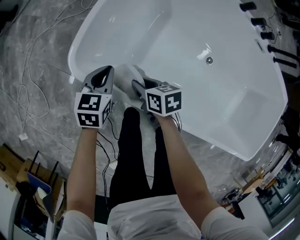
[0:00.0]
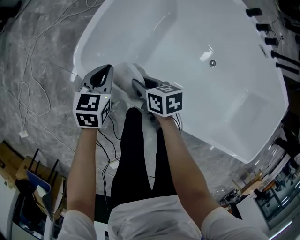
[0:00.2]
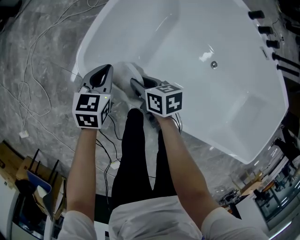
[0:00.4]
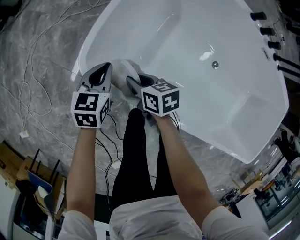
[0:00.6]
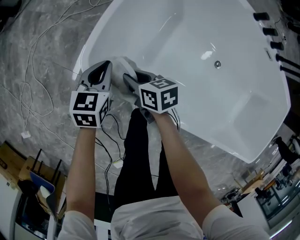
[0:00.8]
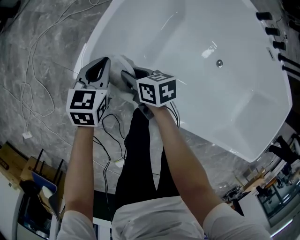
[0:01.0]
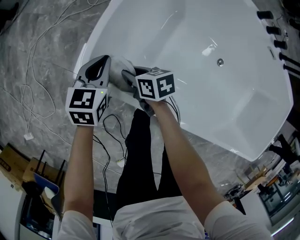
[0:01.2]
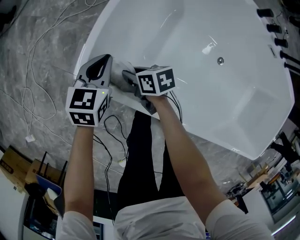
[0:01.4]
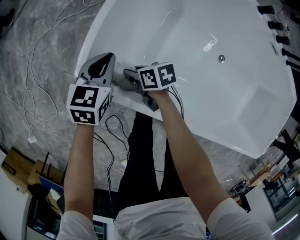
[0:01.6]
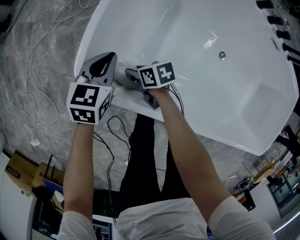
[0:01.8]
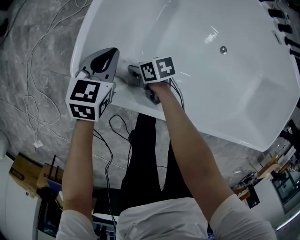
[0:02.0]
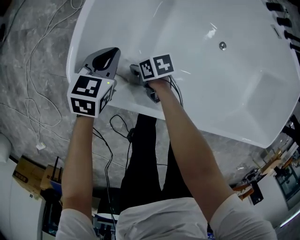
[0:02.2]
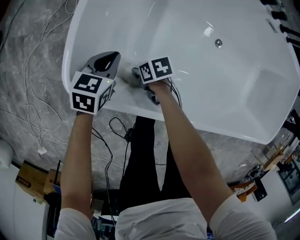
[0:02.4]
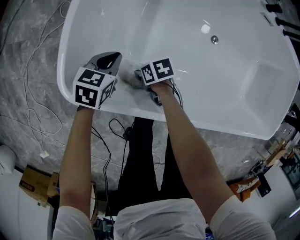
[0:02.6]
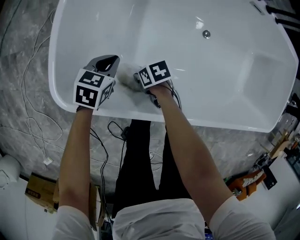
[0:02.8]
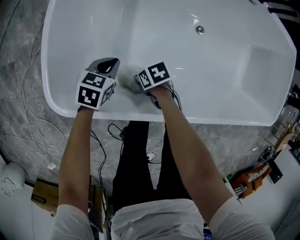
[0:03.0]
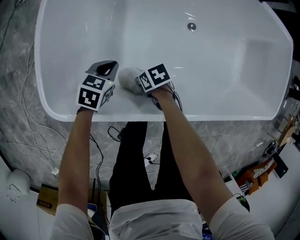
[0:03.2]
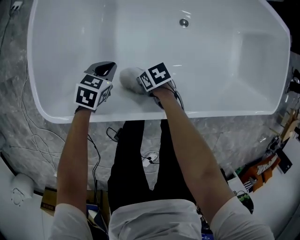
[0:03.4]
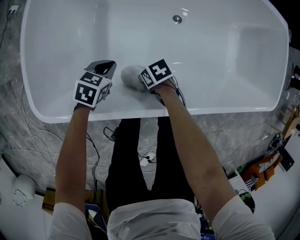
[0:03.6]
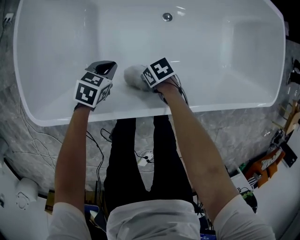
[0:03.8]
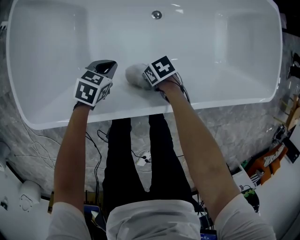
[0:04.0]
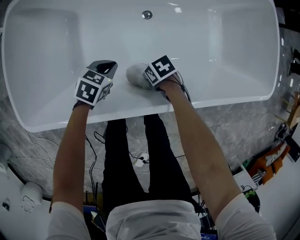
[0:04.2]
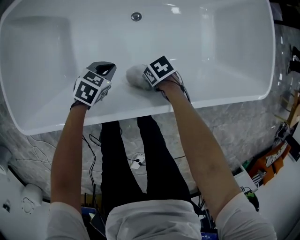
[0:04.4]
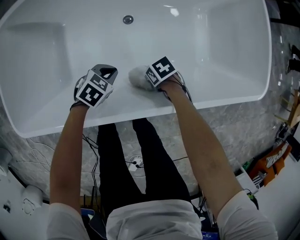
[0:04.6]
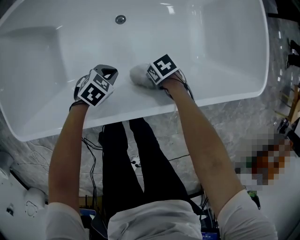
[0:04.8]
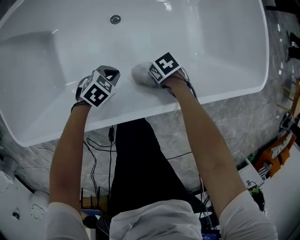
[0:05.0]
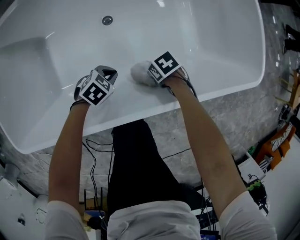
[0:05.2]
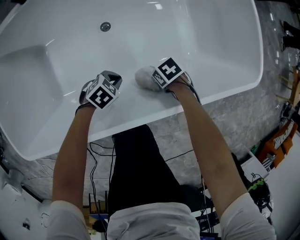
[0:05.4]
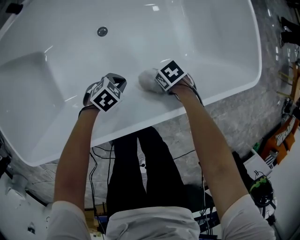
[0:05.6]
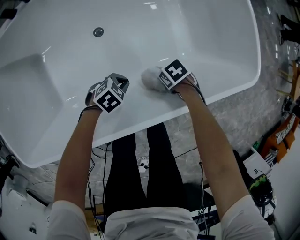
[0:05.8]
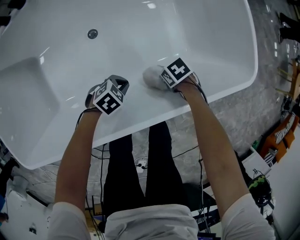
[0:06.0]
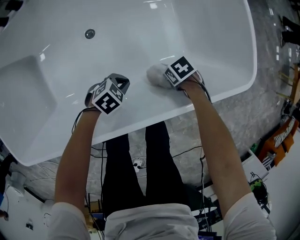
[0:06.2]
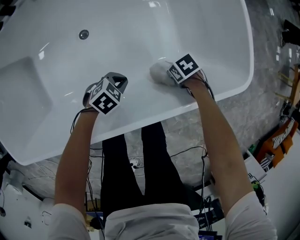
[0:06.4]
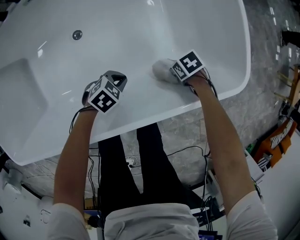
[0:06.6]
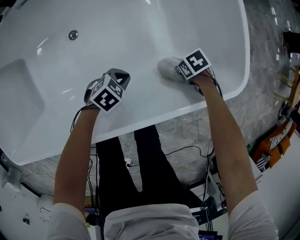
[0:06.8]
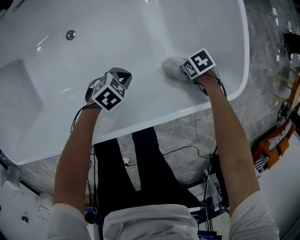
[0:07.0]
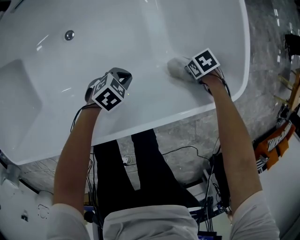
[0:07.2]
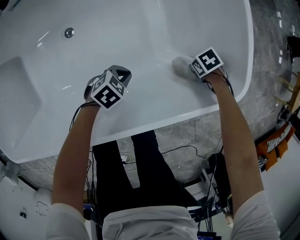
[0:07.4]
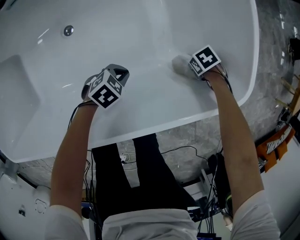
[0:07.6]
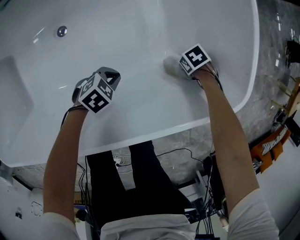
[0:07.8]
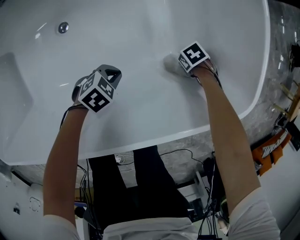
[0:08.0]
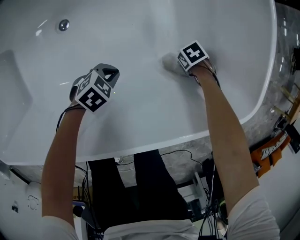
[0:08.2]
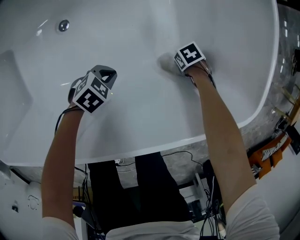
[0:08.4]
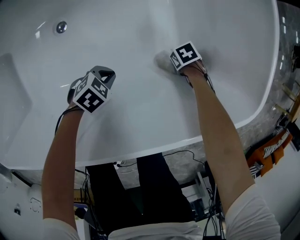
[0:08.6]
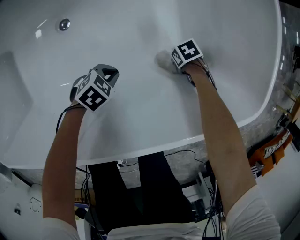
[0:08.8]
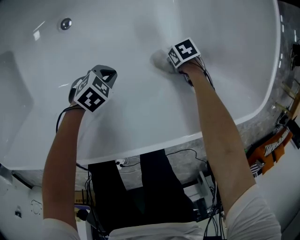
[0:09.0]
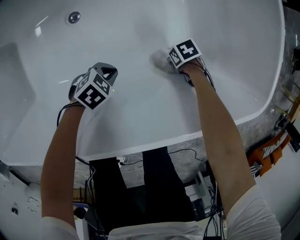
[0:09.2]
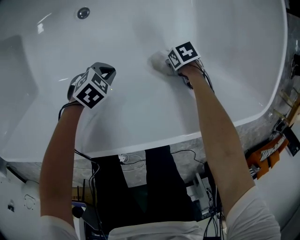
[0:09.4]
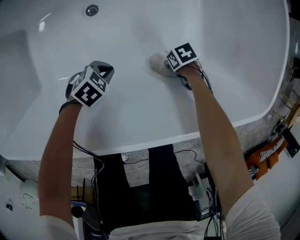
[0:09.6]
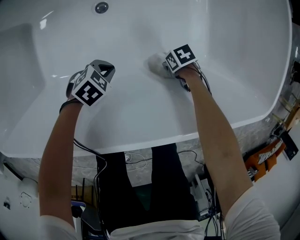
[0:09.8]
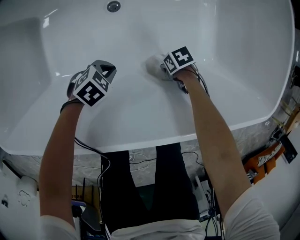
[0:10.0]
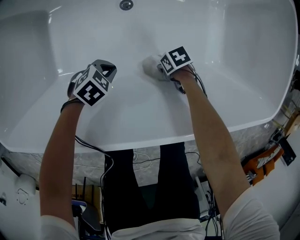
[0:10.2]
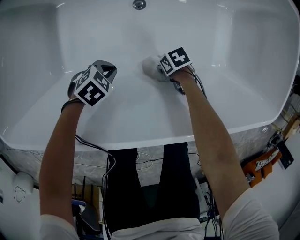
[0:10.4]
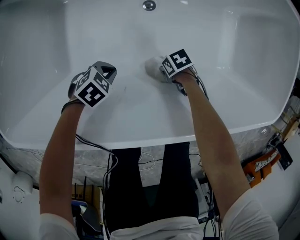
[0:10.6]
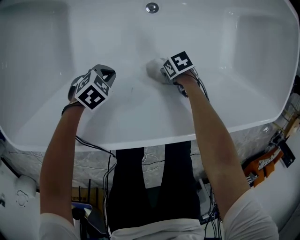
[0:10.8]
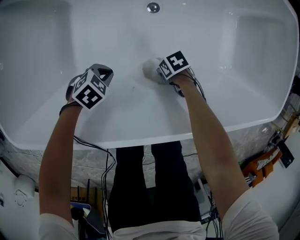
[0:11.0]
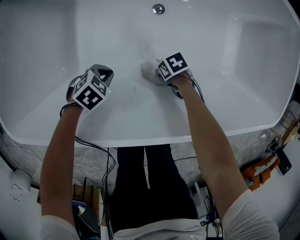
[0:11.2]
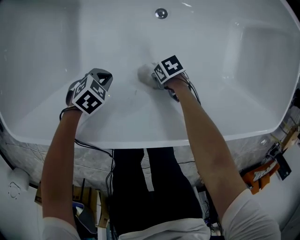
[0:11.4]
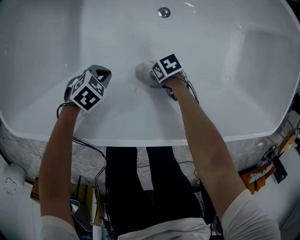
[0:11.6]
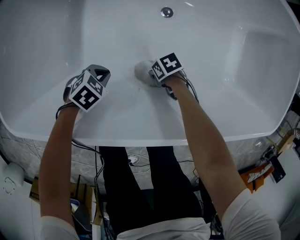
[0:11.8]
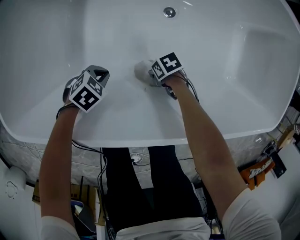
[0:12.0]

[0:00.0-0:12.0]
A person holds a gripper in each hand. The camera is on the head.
0.0 to 1.6 s: The left gripper changes place by approximately 10 cm.
1.6 to 3.0 s: The left gripper changes place by about 20 cm, and changes its angle by some 30 degrees.
3.0 to 4.4 s: The left gripper changes place by some 35 cm, and swivels roughly 30 degrees.
4.4 to 6.0 s: The left gripper ends up approximately 25 cm from where it was, and changes its angle by roughly 30 degrees.
6.0 to 7.6 s: The left gripper ends up some 15 cm from where it was.
7.6 to 9.0 s: The left gripper ends up approximately 10 cm from where it was.
9.0 to 10.4 s: The left gripper moves roughly 30 cm.
10.4 to 12.0 s: The left gripper moves approximately 15 cm.

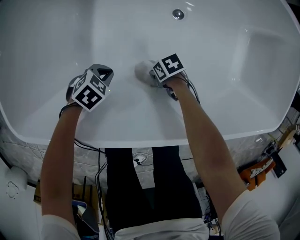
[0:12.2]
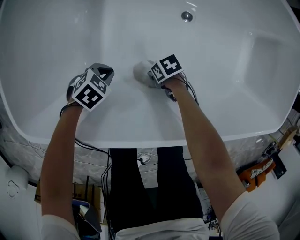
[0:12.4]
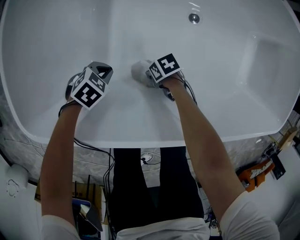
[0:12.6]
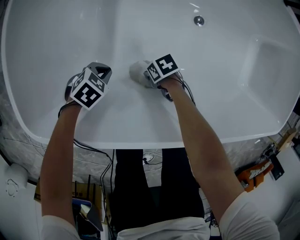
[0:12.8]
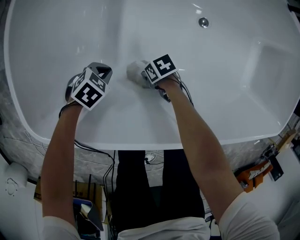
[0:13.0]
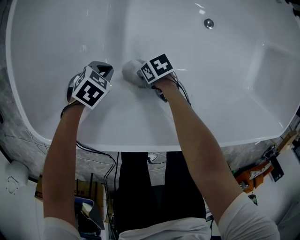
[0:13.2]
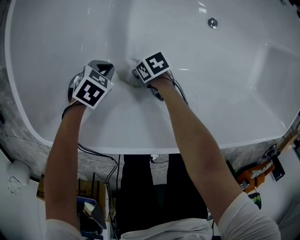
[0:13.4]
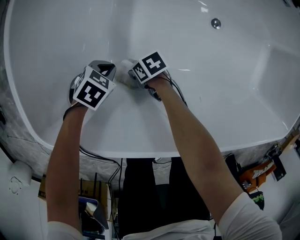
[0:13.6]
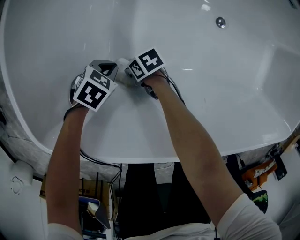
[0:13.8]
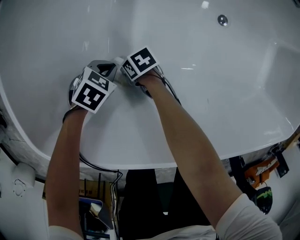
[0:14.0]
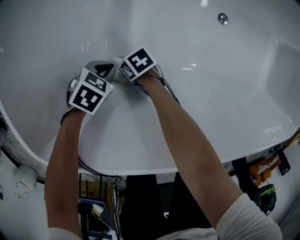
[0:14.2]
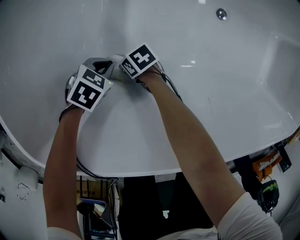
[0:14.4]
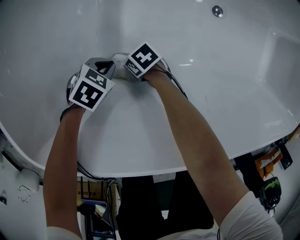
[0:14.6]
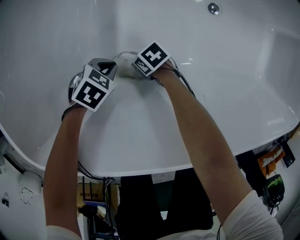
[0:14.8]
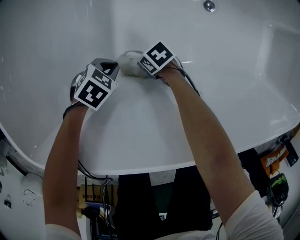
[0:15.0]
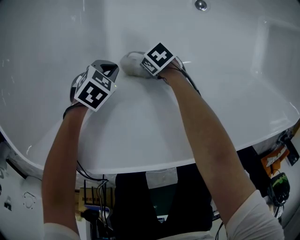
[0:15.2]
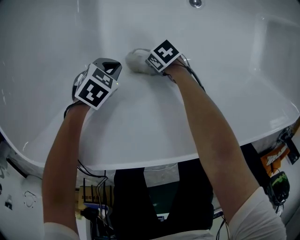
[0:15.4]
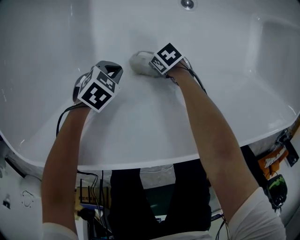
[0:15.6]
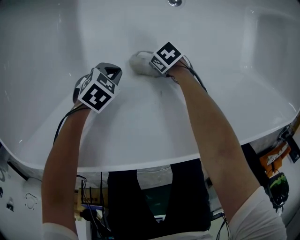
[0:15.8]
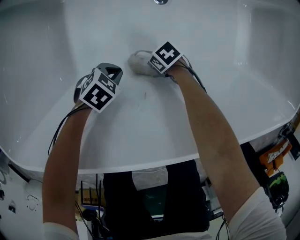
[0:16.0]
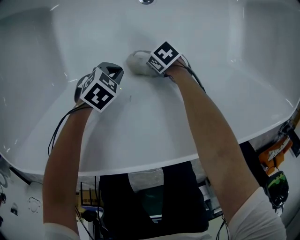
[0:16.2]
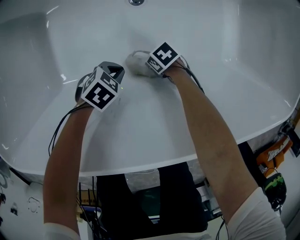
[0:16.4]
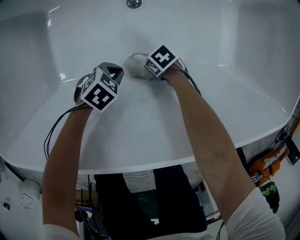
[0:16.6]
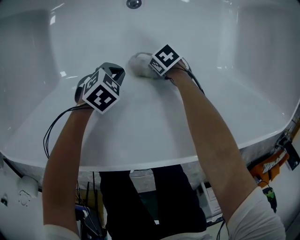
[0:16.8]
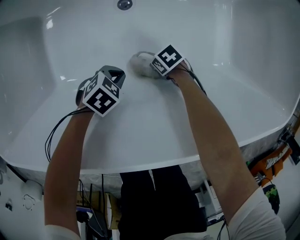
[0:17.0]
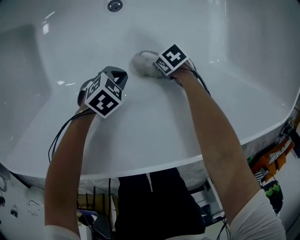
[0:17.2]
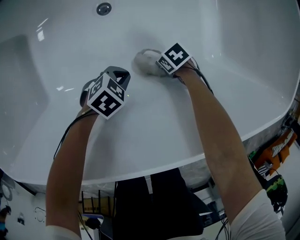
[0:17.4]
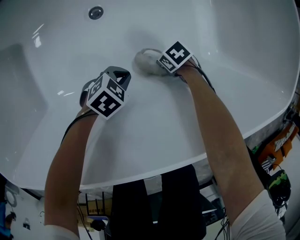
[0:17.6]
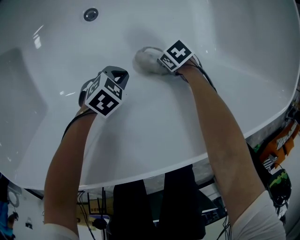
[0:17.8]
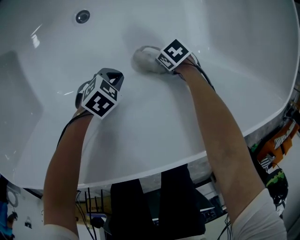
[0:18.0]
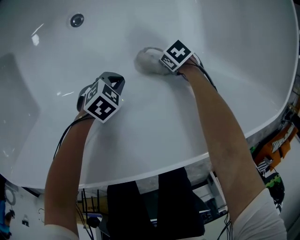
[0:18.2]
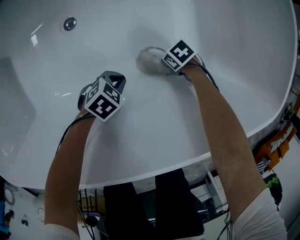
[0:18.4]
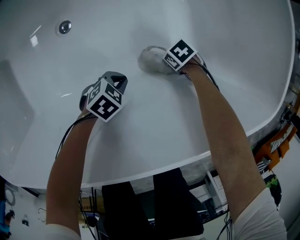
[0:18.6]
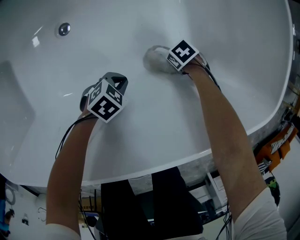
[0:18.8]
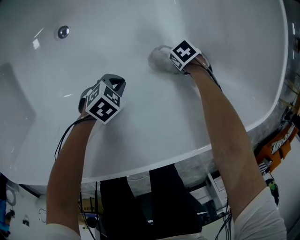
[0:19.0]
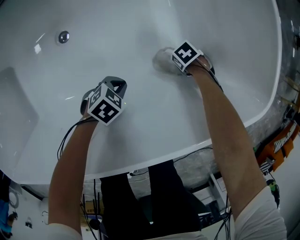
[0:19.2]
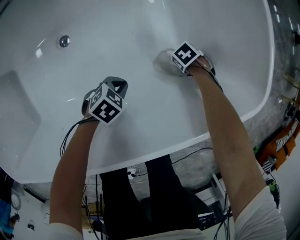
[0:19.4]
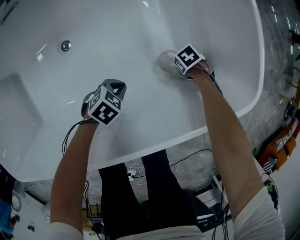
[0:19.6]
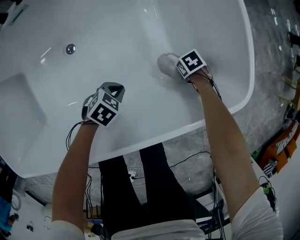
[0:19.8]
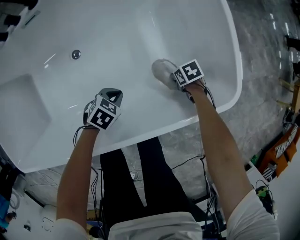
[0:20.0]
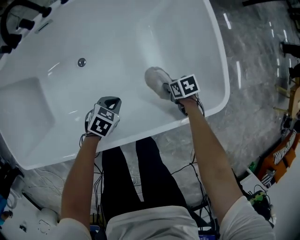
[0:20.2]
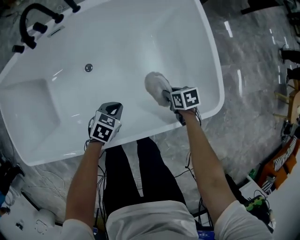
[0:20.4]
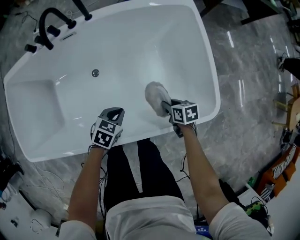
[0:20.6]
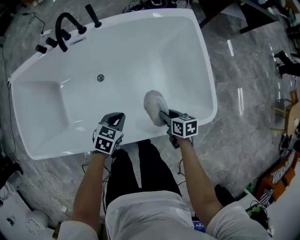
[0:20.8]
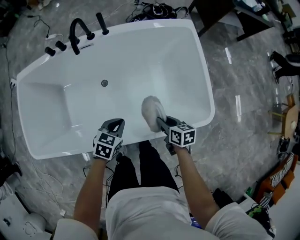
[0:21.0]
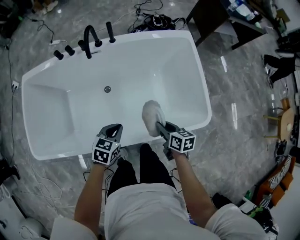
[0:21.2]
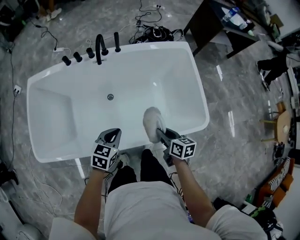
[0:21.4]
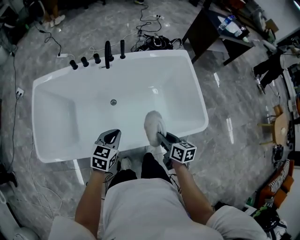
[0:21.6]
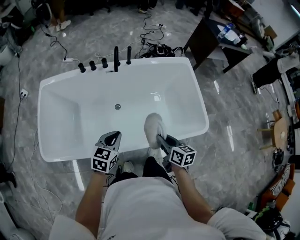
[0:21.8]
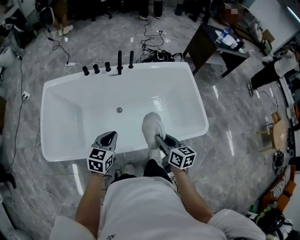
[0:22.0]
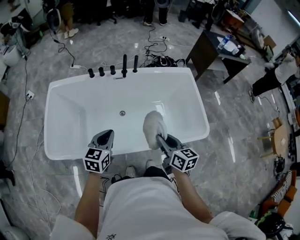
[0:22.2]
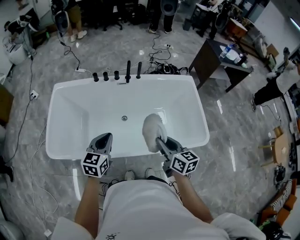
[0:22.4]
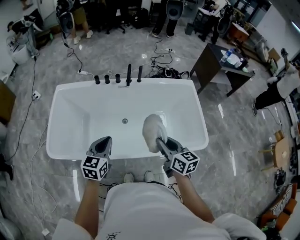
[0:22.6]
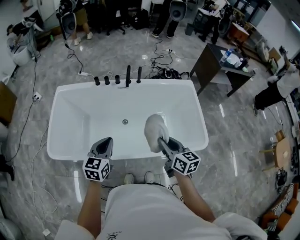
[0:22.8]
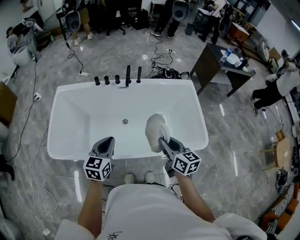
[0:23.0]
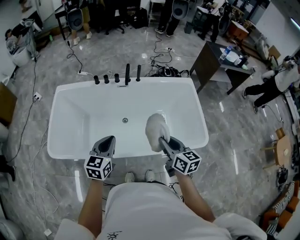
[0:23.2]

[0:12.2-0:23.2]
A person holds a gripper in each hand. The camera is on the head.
12.2 to 13.8 s: The left gripper shifts by about 20 cm.
13.8 to 15.4 s: The left gripper moves approximately 10 cm.
15.4 to 17.0 s: The left gripper shifts by some 35 cm.
17.0 to 18.4 s: The left gripper shifts by roughly 20 cm.
18.4 to 20.0 s: The left gripper is displaced upward by about 15 cm.
20.0 to 21.6 s: The left gripper is displaced upward by roughly 40 cm, and swivels roughly 40 degrees.
21.6 to 23.2 s: The left gripper shifts some 15 cm upward, and rotates approximately 20 degrees.

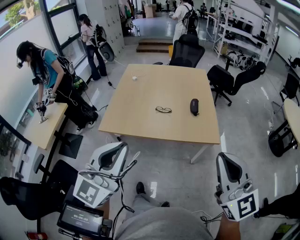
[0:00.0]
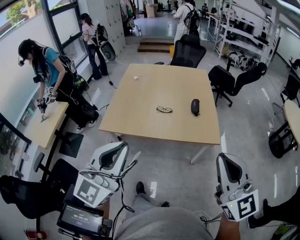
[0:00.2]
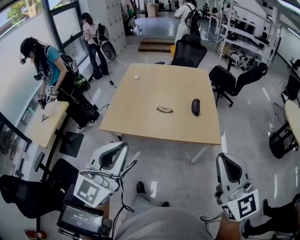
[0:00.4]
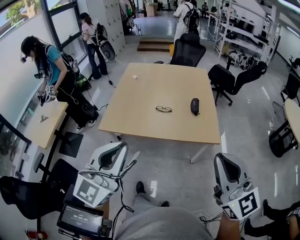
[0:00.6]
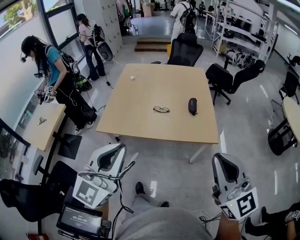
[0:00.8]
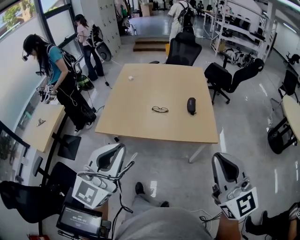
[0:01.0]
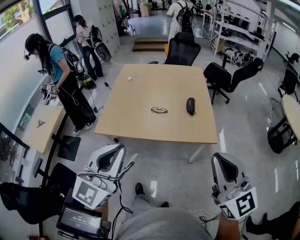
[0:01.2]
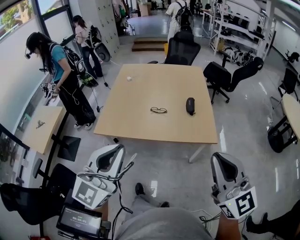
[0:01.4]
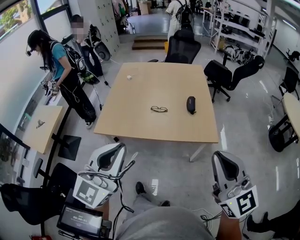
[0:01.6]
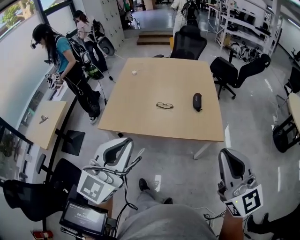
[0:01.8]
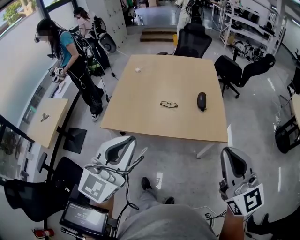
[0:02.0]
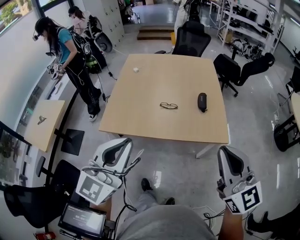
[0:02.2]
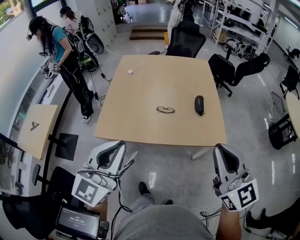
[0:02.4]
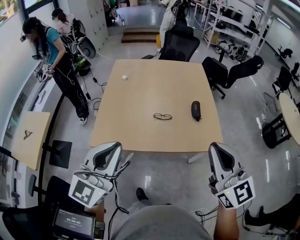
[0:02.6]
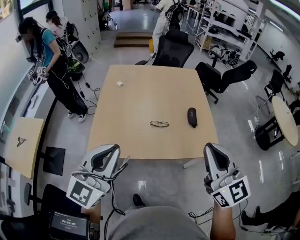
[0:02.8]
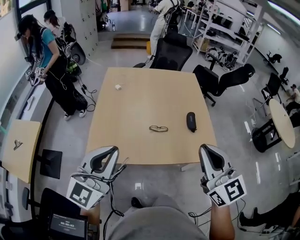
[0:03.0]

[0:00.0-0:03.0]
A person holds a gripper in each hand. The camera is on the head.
0.0 to 1.6 s: The grippers make only small movements.
1.6 to 3.0 s: Both grippers travel together forward and to the left, roughly 30 cm.
